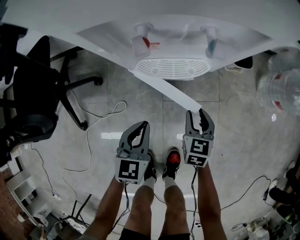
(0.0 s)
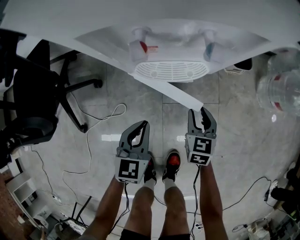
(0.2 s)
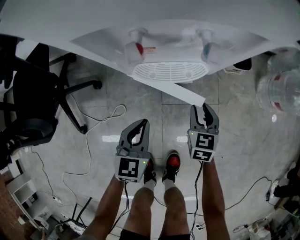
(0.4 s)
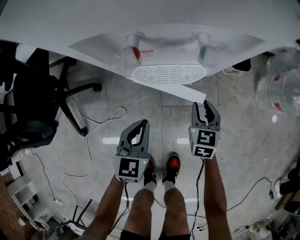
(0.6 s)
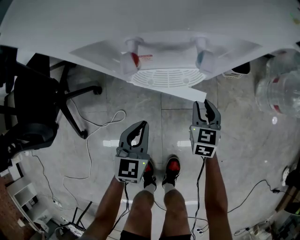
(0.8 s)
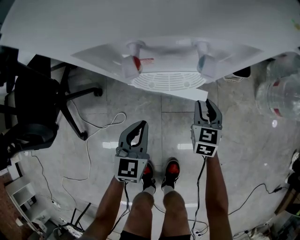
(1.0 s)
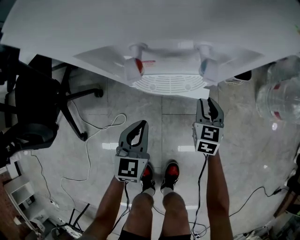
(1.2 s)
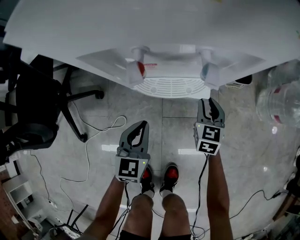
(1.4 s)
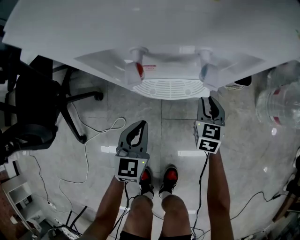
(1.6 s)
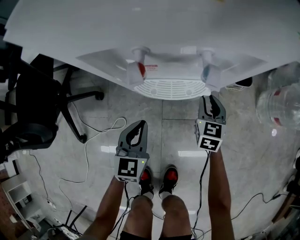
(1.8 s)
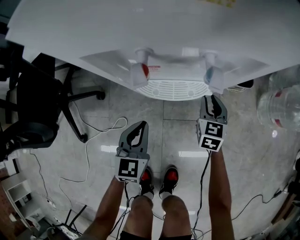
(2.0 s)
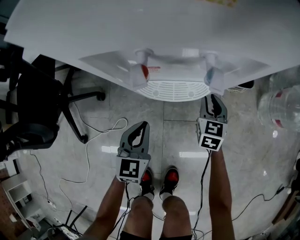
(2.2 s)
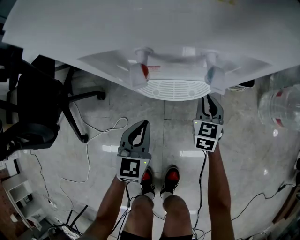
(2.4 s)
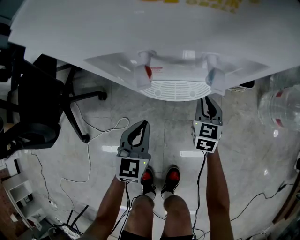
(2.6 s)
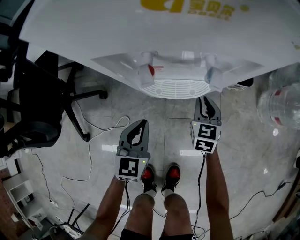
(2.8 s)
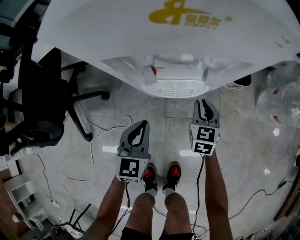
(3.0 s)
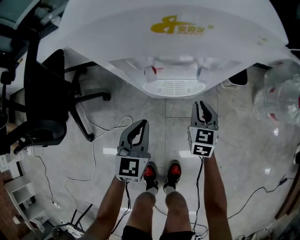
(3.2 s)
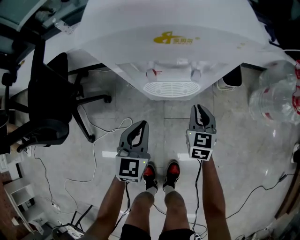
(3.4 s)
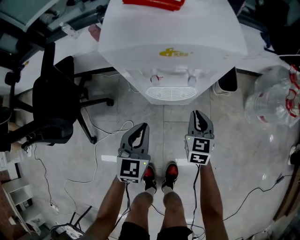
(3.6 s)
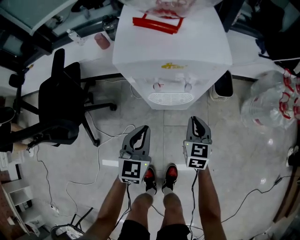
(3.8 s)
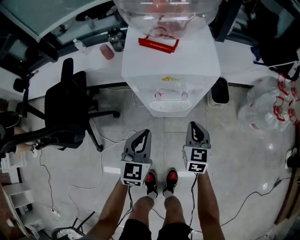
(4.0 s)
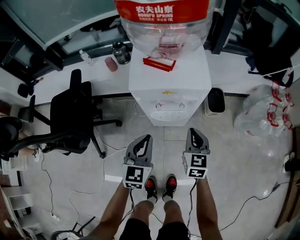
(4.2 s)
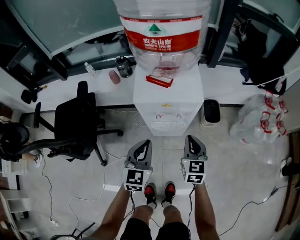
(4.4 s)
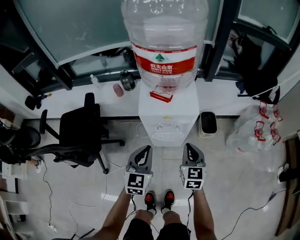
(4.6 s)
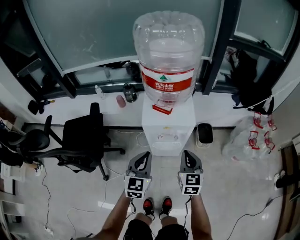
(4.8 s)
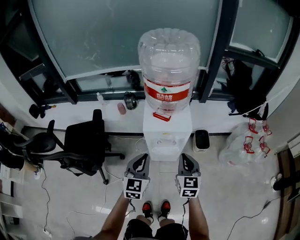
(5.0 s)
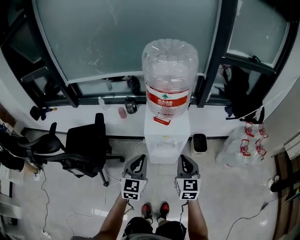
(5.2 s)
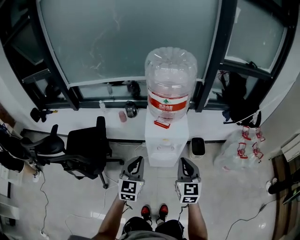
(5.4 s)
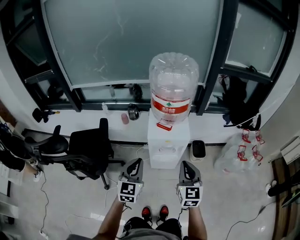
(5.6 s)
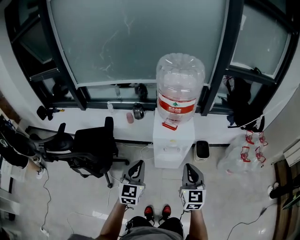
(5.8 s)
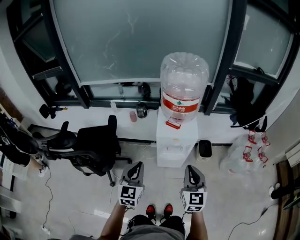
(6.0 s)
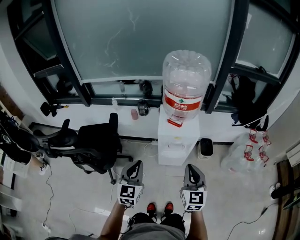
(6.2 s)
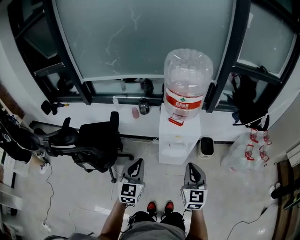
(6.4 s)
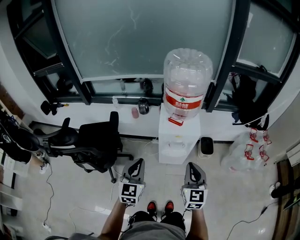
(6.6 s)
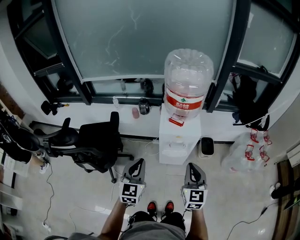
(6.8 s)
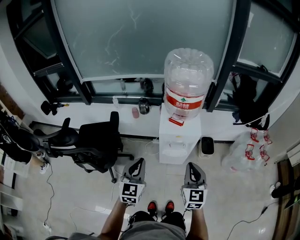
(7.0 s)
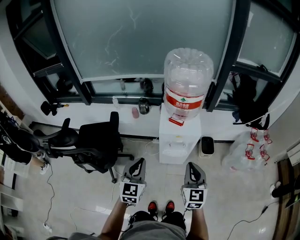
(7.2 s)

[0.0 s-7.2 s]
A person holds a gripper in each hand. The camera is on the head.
0.0 to 1.4 s: The left gripper moves forward, roughly 5 cm; the right gripper heads forward, covering roughly 10 cm.
1.4 to 2.8 s: The grippers move only a little.
2.8 to 4.4 s: Both grippers move upward, roughly 35 cm.
4.4 to 5.8 s: The two grippers go roughly 30 cm upward.
5.8 to 7.2 s: The grippers make only small movements.

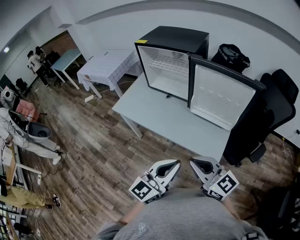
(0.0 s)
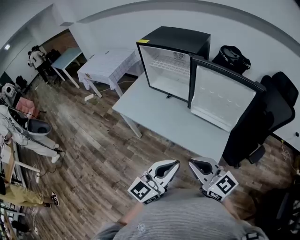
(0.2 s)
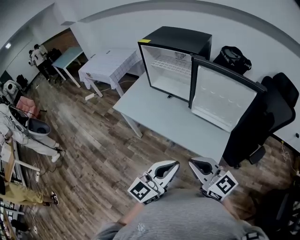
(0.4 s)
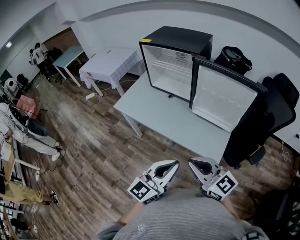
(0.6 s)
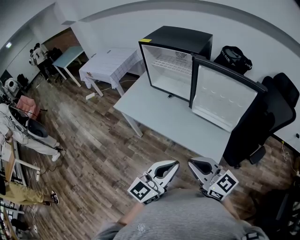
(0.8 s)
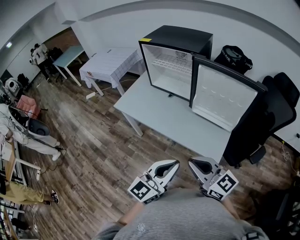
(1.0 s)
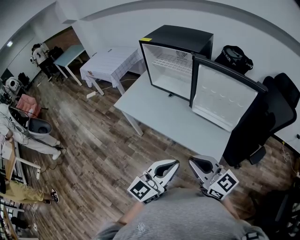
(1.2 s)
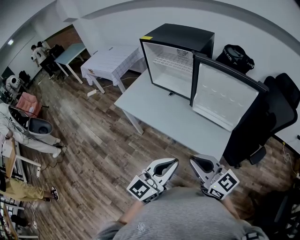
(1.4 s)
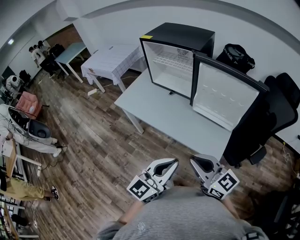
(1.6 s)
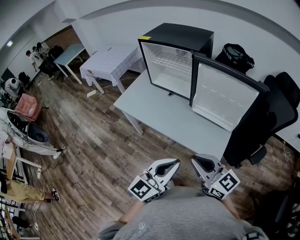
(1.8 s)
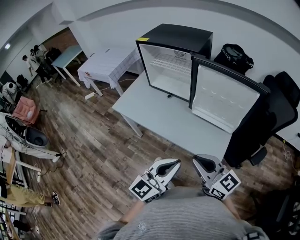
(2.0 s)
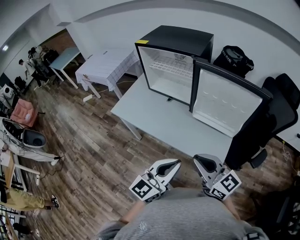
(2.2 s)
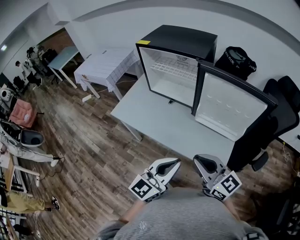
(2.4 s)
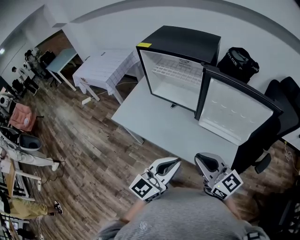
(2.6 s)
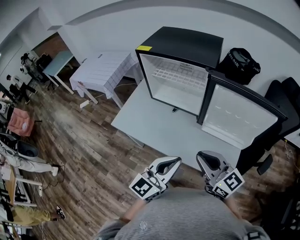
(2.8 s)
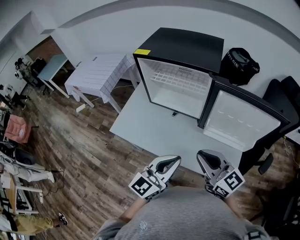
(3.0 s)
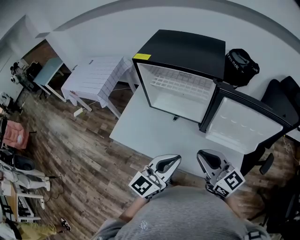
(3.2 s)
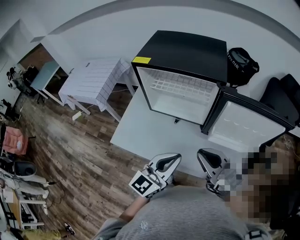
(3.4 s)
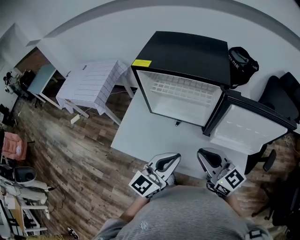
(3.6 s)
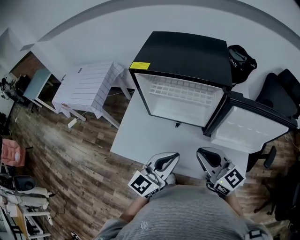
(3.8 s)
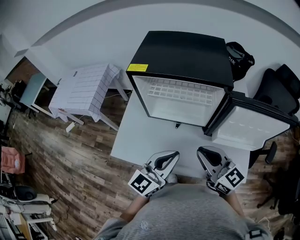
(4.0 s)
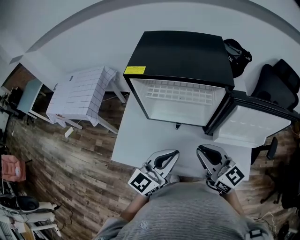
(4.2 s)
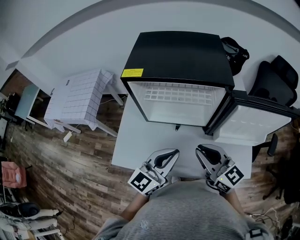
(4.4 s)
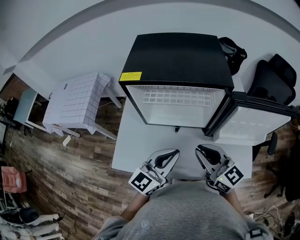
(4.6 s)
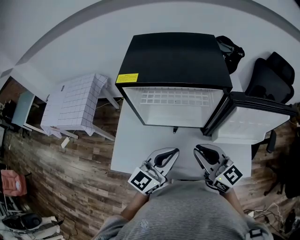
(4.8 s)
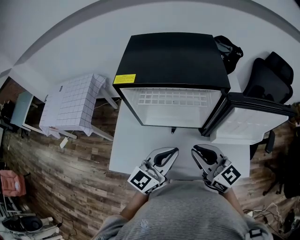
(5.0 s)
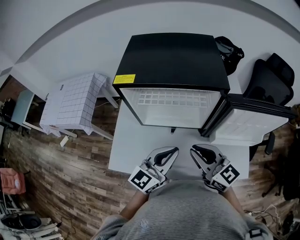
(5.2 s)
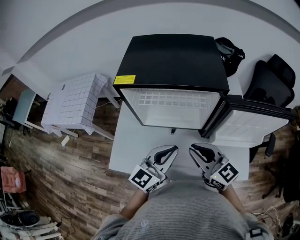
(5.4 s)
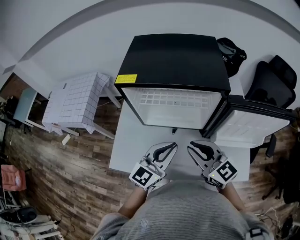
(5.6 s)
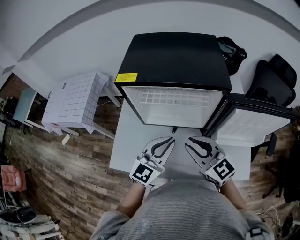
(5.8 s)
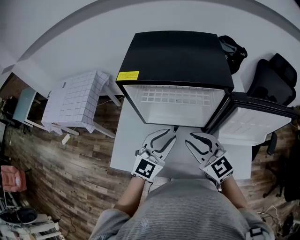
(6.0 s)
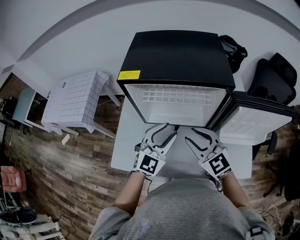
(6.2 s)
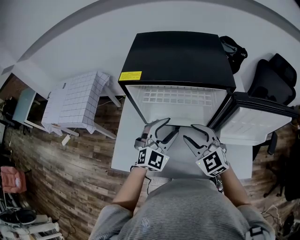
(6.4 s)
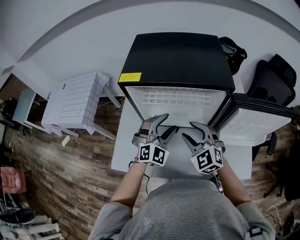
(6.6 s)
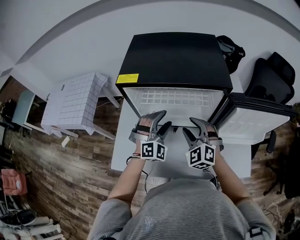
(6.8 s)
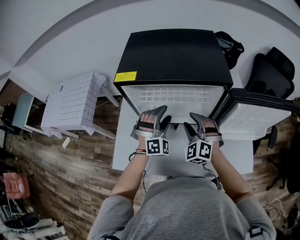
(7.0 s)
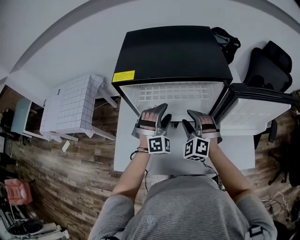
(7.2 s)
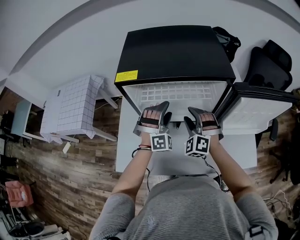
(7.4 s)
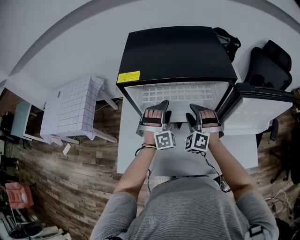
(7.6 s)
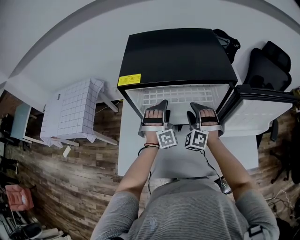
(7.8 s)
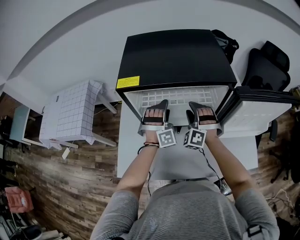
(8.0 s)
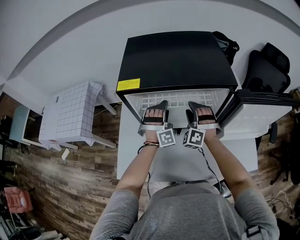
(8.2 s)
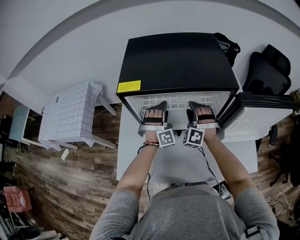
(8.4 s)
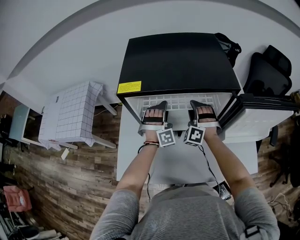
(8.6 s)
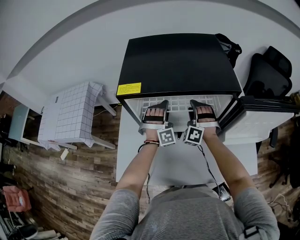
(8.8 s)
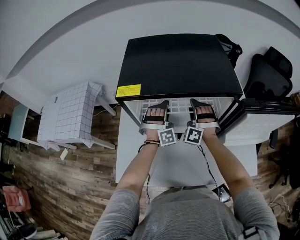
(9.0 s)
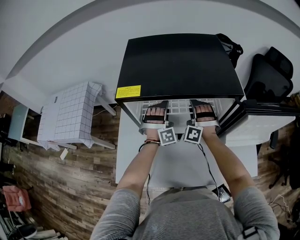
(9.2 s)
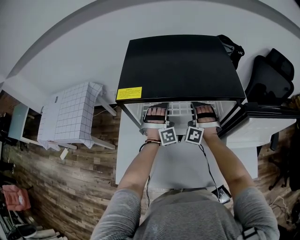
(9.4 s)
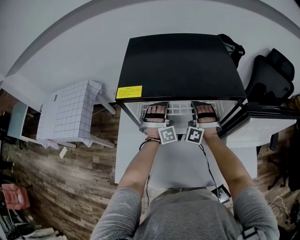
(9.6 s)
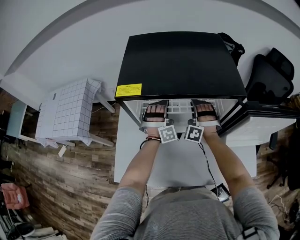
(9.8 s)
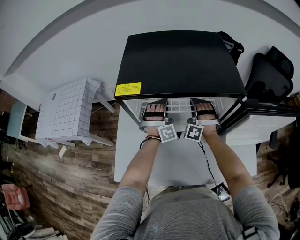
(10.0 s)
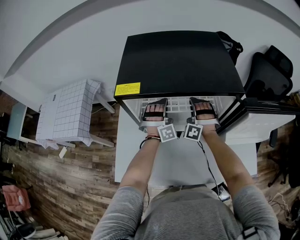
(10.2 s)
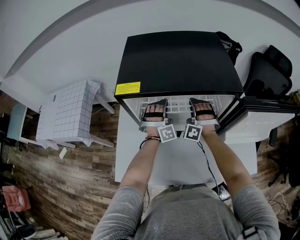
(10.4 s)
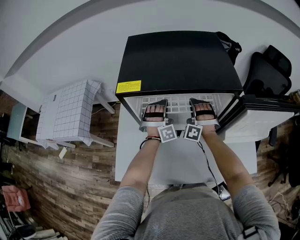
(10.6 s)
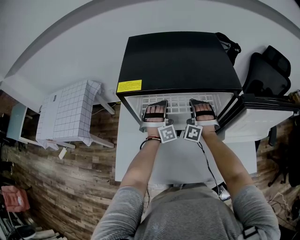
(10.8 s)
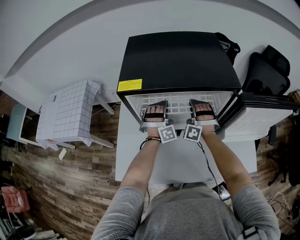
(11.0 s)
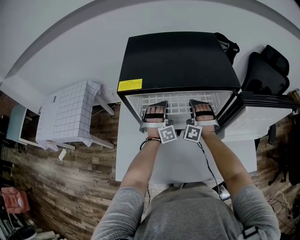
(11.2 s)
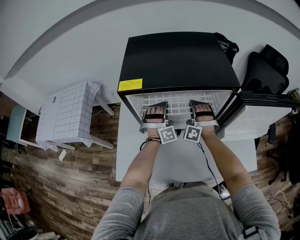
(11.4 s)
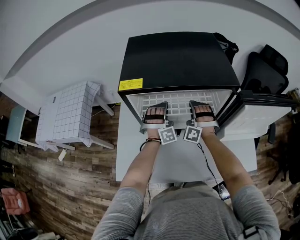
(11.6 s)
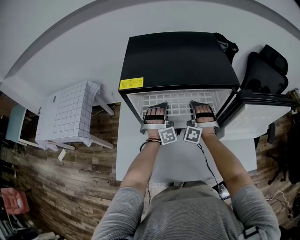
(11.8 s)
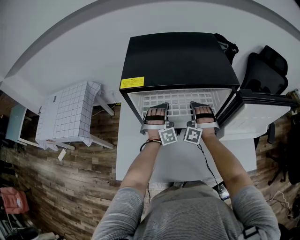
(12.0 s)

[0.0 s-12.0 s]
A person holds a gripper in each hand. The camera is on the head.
0.0 to 1.6 s: There are only small adjustments of the grippers.
1.6 to 3.0 s: The grippers both shift forward by about 25 cm.
3.0 to 4.4 s: Both grippers move forward and to the left, roughly 20 cm.
4.4 to 6.0 s: The right gripper changes place by about 5 cm, and rotates approximately 20 degrees. Meanwhile the left gripper goes roughly 10 cm forward, and changes its angle by approximately 30 degrees.
6.0 to 7.6 s: The grippers both shift forward and downward by some 15 cm. The left gripper twists approximately 60 degrees clockwise, seen from behind, and opens. Meanwhile the right gripper rotates about 60 degrees, and opens its fingers.
7.6 to 9.0 s: Both grippers travel together forward, roughly 10 cm.
9.0 to 10.4 s: The right gripper closes. Meanwhile the left gripper closes.
10.4 to 12.0 s: The grippers stay close to where they were, moving slightly.

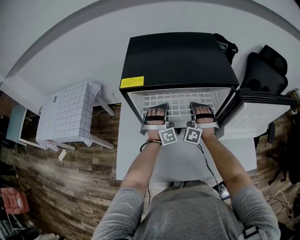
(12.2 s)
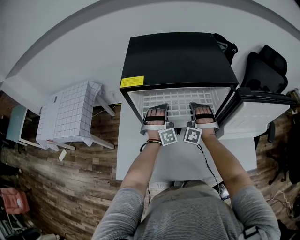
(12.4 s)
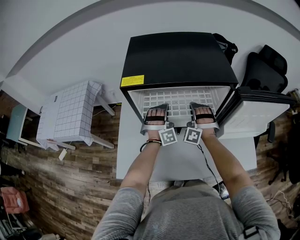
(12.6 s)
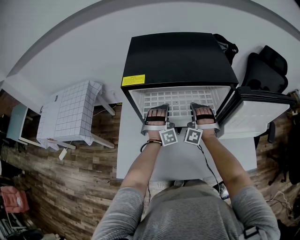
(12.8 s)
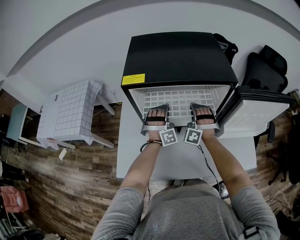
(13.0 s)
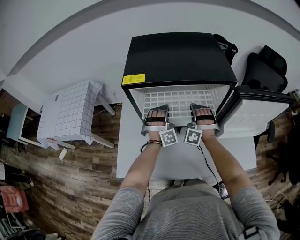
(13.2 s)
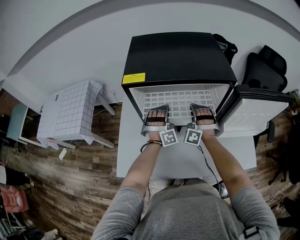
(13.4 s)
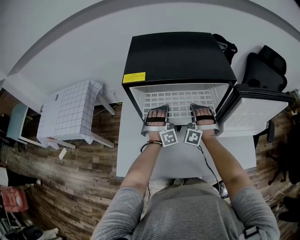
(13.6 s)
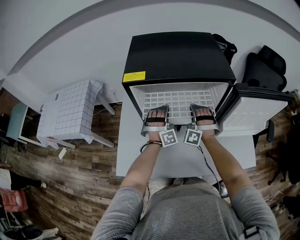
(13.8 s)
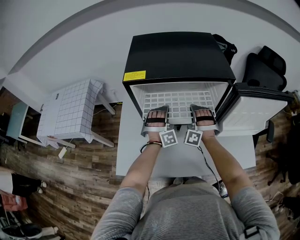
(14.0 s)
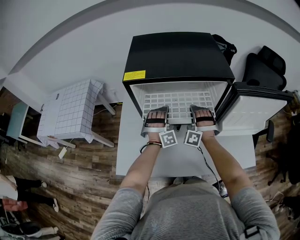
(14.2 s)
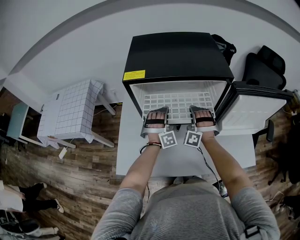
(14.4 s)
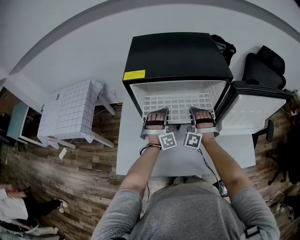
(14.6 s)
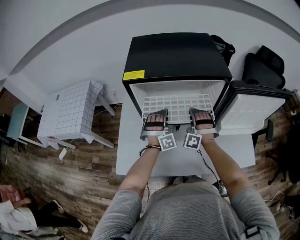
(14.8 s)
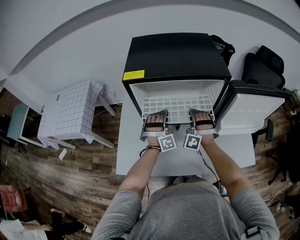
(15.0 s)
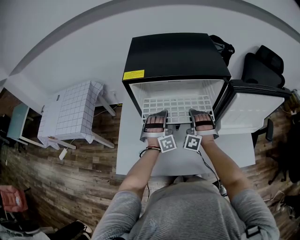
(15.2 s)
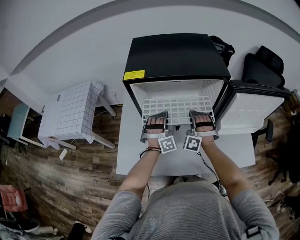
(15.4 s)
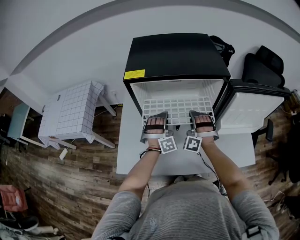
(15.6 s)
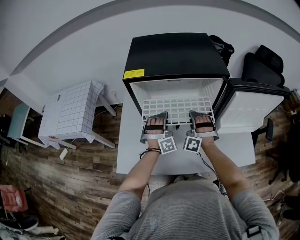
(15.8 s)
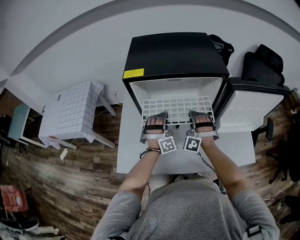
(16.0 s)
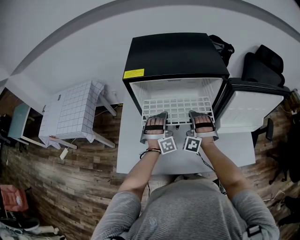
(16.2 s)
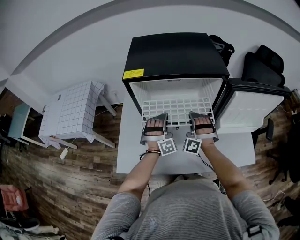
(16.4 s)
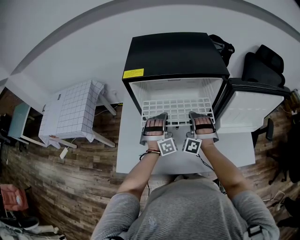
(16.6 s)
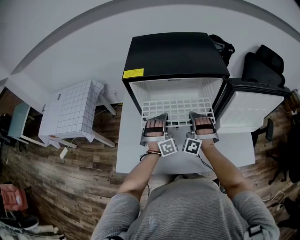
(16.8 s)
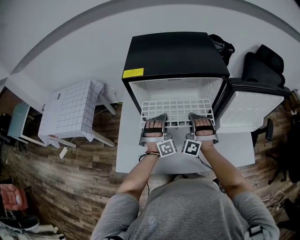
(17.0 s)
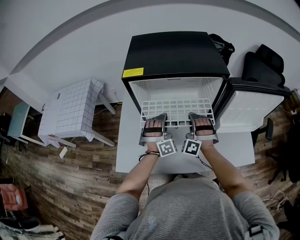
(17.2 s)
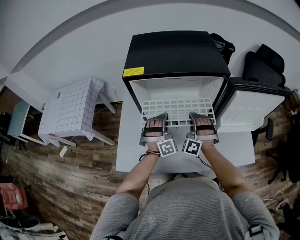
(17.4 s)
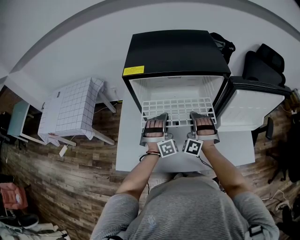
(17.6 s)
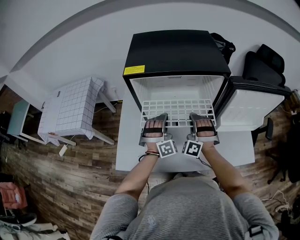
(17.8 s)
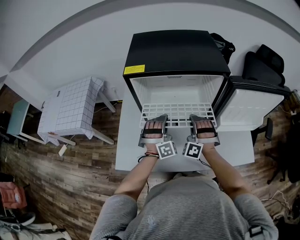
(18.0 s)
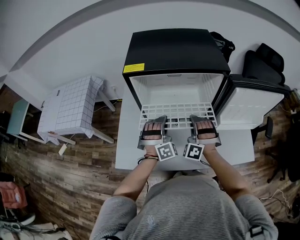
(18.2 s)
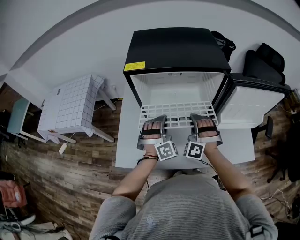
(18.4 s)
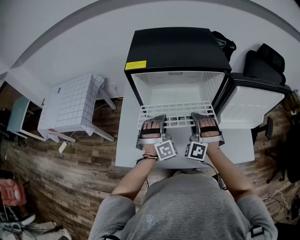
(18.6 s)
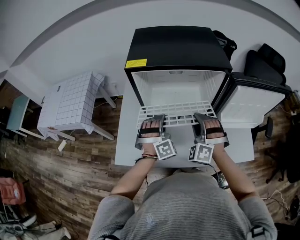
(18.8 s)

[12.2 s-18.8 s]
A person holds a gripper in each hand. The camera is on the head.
12.2 to 13.8 s: There are only small adjustments of the grippers.
13.8 to 15.4 s: The grippers stay close to where they were, moving slightly.
15.4 to 17.2 s: There are only small adjustments of the grippers.
17.2 to 18.8 s: The right gripper goes about 5 cm backward, and opens up. The left gripper moves about 5 cm.
